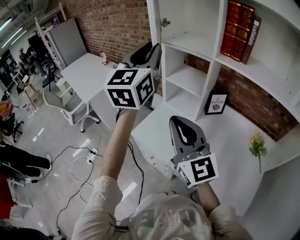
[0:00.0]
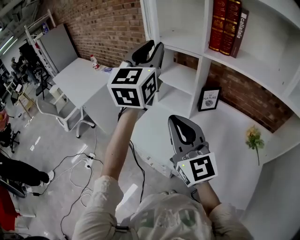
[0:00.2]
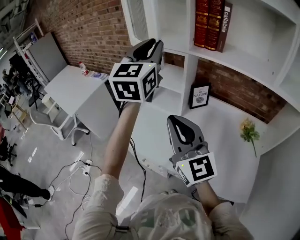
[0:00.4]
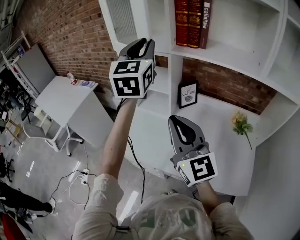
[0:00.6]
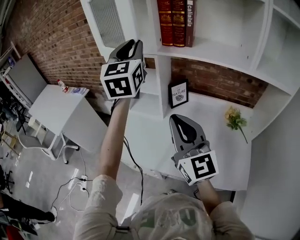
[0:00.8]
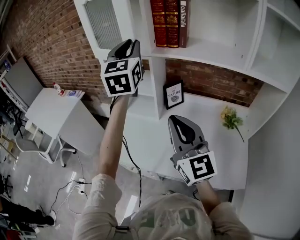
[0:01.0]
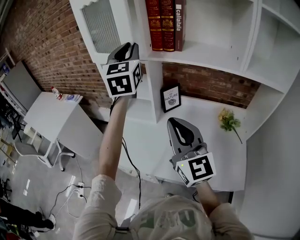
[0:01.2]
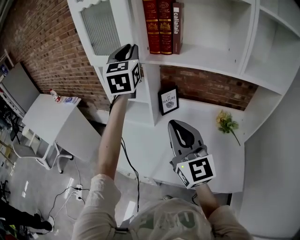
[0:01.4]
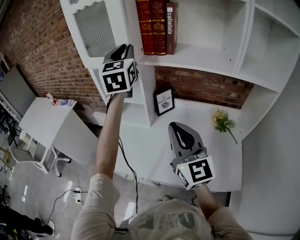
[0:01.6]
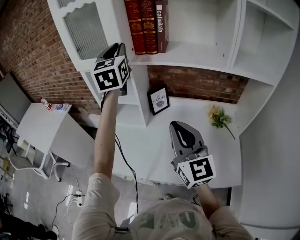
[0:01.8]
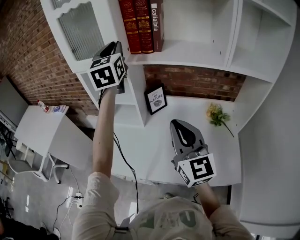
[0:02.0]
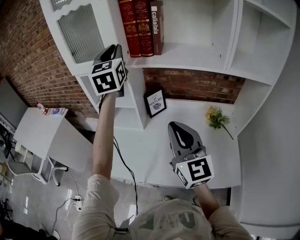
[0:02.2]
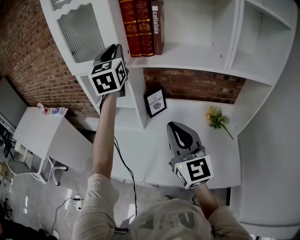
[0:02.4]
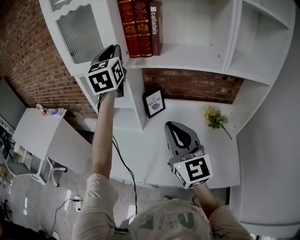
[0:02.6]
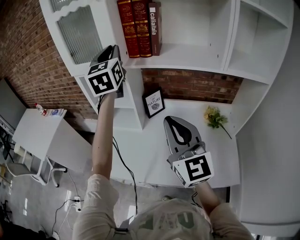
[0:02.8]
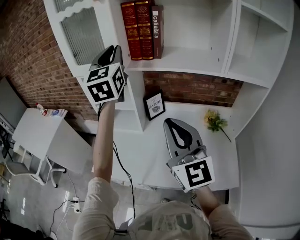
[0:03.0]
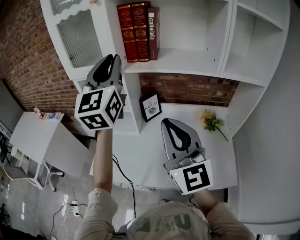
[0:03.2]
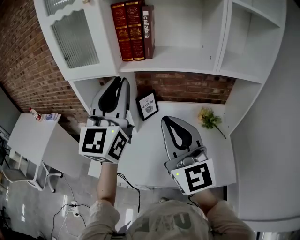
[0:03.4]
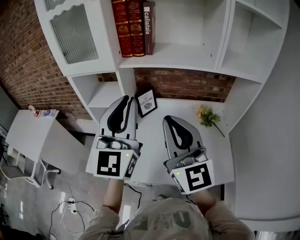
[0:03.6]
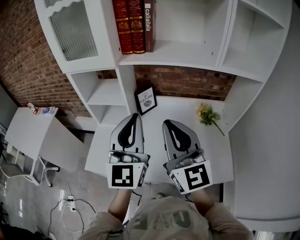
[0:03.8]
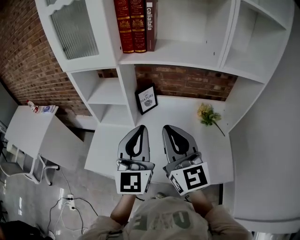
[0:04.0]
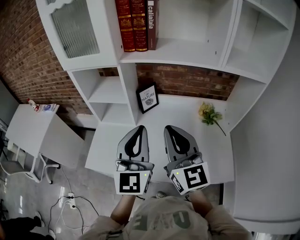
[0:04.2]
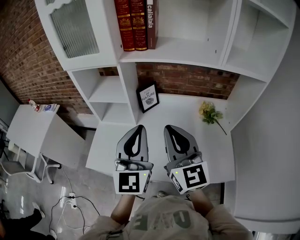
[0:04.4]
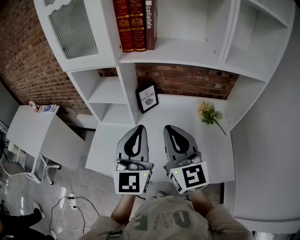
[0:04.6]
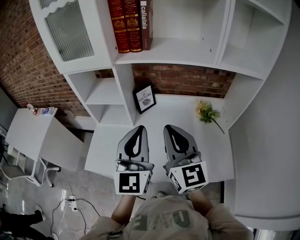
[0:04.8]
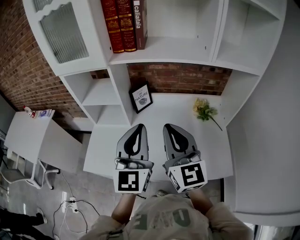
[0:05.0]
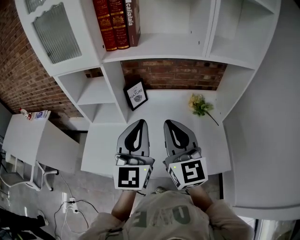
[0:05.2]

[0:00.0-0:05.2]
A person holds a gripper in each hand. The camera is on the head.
0:00.0 to 0:01.8: The left gripper moves to the right and forward, approximately 25 cm; the right gripper goes roughly 20 cm to the right, and rotates some 30 degrees.
0:01.8 to 0:03.4: The right gripper goes about 10 cm upward, while the left gripper goes about 15 cm backward, and turns by roughly 20 degrees.
0:03.4 to 0:05.2: The left gripper moves downward, to the right and backward, some 20 cm. Meanwhile the right gripper moves downward, approximately 10 cm.

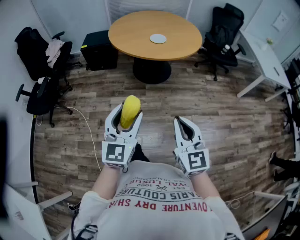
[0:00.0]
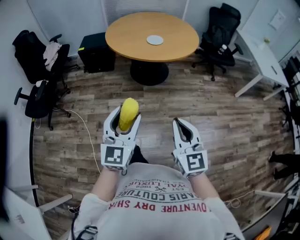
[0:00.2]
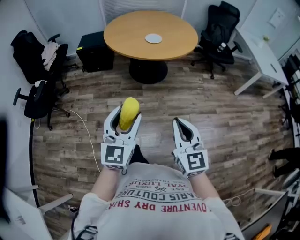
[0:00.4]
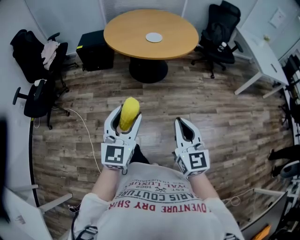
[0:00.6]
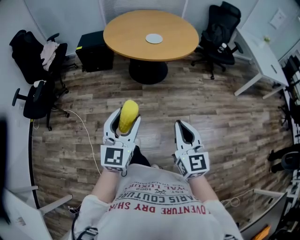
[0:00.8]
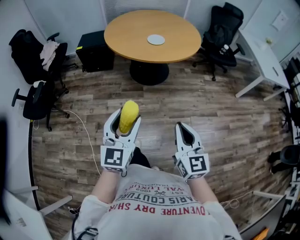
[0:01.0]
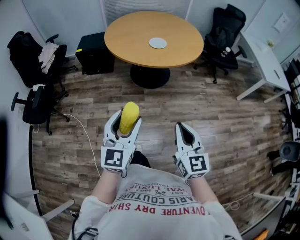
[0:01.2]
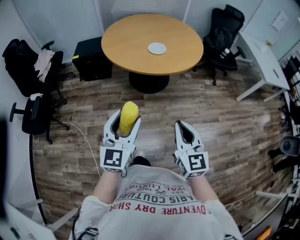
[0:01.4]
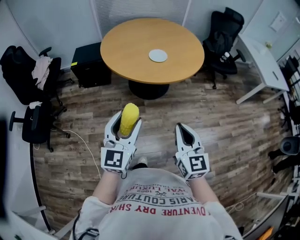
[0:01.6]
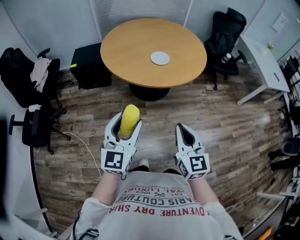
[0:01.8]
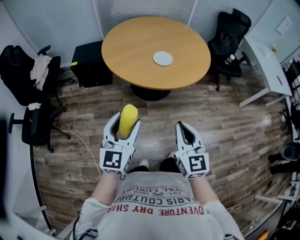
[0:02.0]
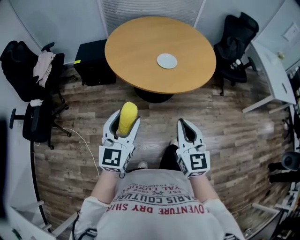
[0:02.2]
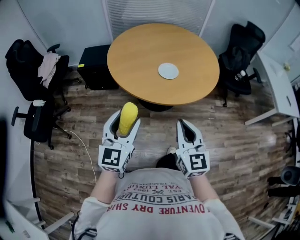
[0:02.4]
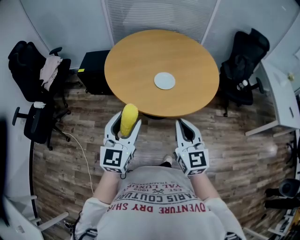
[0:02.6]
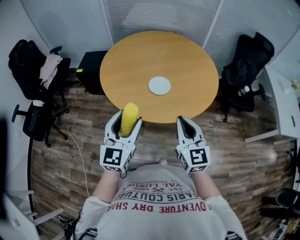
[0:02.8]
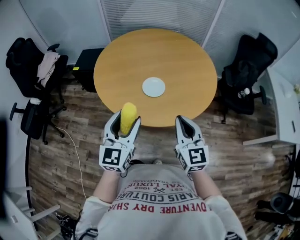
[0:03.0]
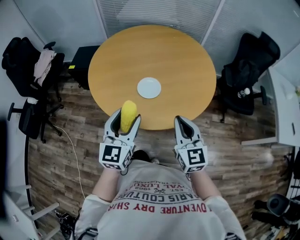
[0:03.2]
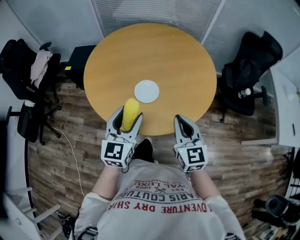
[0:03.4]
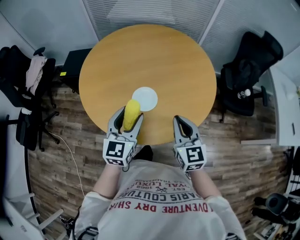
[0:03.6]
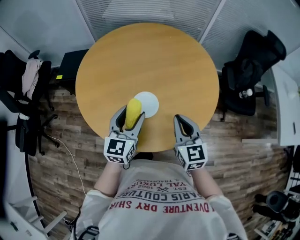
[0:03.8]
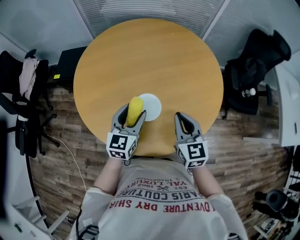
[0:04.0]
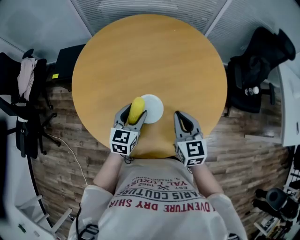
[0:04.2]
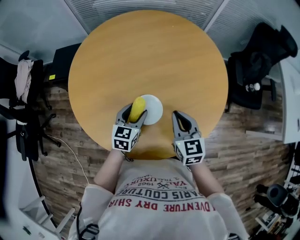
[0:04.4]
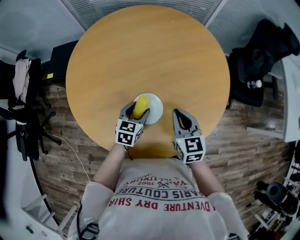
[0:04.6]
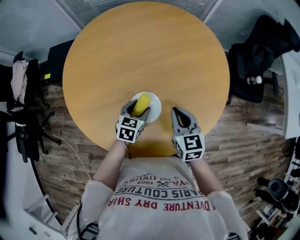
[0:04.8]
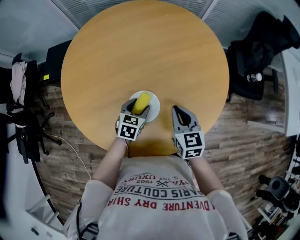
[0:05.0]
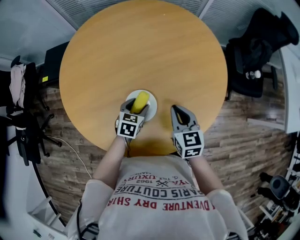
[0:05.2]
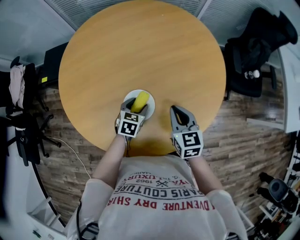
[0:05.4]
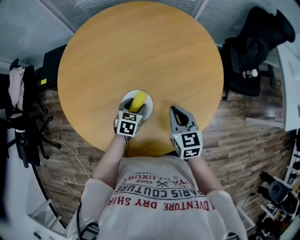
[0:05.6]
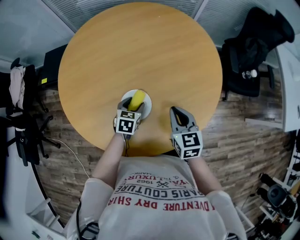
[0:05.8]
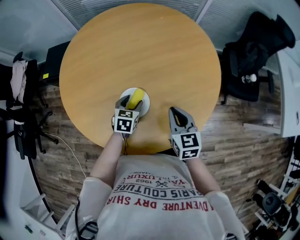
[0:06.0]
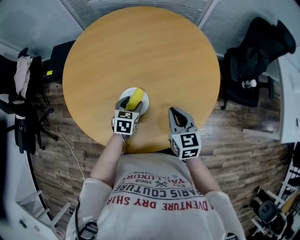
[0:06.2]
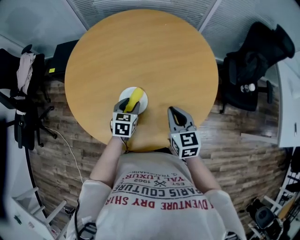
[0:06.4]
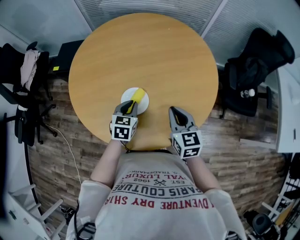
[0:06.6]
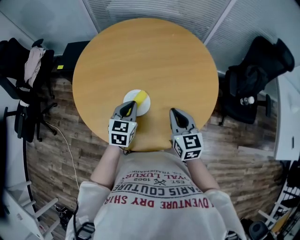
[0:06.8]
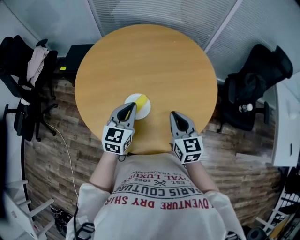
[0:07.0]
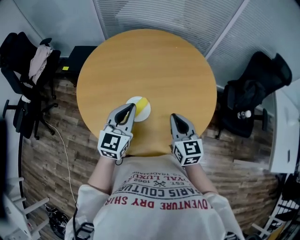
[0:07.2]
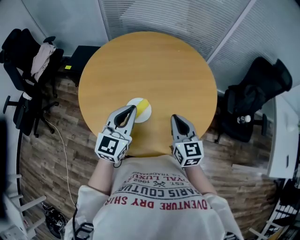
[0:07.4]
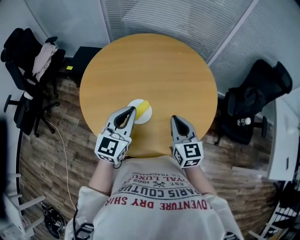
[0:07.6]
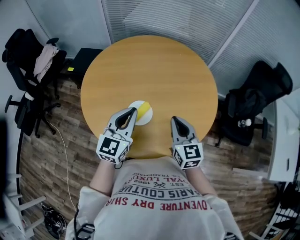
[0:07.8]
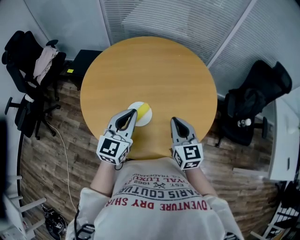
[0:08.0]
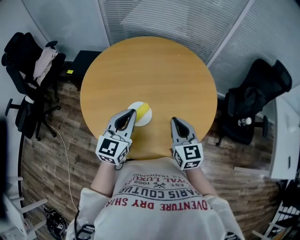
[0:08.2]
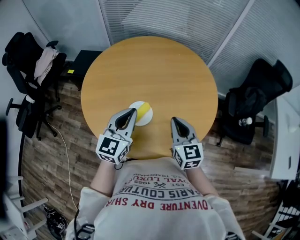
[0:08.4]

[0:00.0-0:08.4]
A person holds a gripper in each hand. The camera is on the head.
0:00.0 to 0:01.4: The grippers both shift forward by roughly 15 cm.
0:01.4 to 0:02.8: The two grippers go roughly 35 cm forward.
0:02.8 to 0:04.2: Both grippers travel together forward and downward, about 35 cm. The left gripper changes its angle by about 30 degrees.
0:04.2 to 0:05.6: The left gripper heads downward, covering some 15 cm, and swivels some 30 degrees. Meanwhile the right gripper heads downward, covering approximately 5 cm.
0:05.6 to 0:07.0: The right gripper goes about 10 cm upward, while the left gripper goes some 25 cm upward, tilts its fingers roughly 30 degrees upward, and closes up.
0:07.0 to 0:08.4: The left gripper goes approximately 5 cm upward.

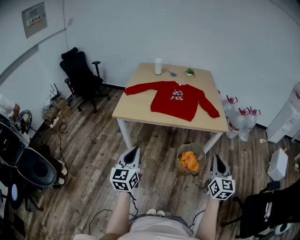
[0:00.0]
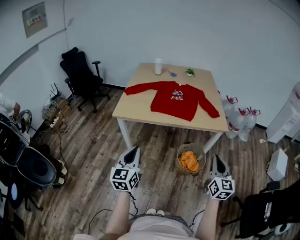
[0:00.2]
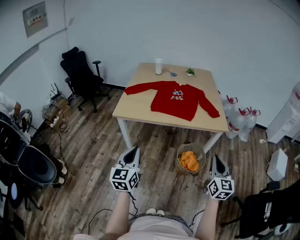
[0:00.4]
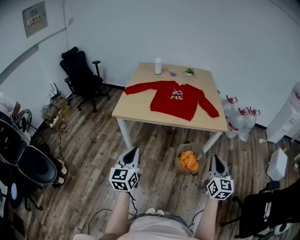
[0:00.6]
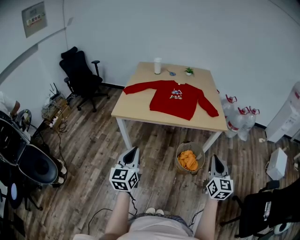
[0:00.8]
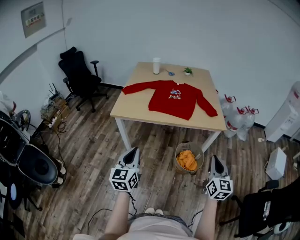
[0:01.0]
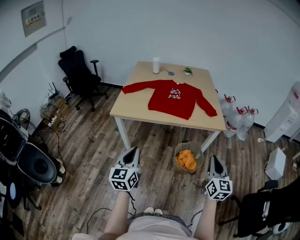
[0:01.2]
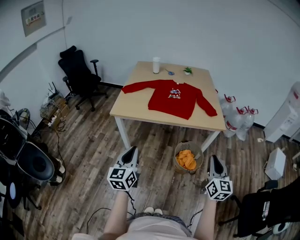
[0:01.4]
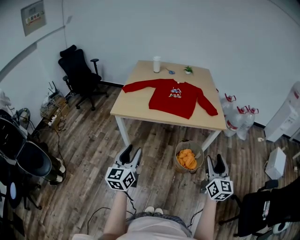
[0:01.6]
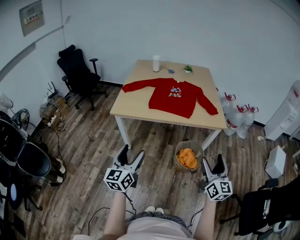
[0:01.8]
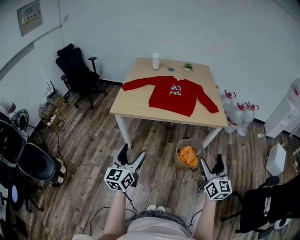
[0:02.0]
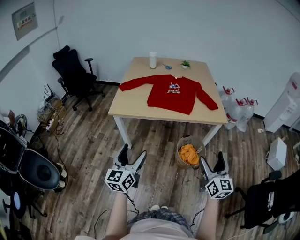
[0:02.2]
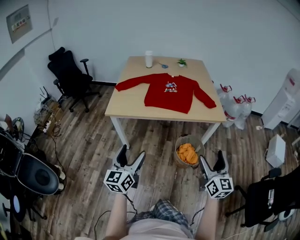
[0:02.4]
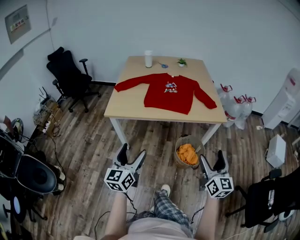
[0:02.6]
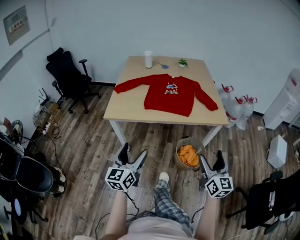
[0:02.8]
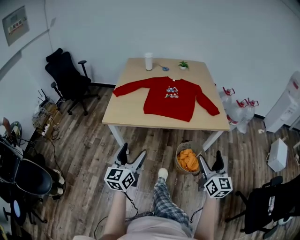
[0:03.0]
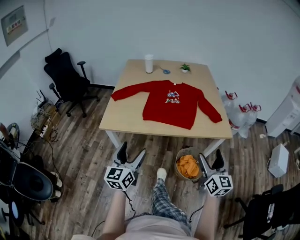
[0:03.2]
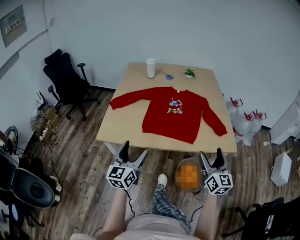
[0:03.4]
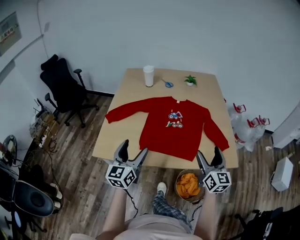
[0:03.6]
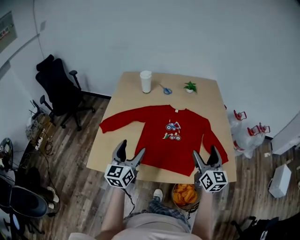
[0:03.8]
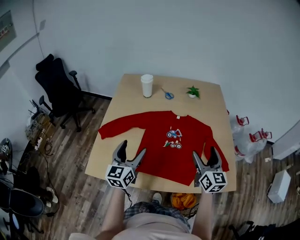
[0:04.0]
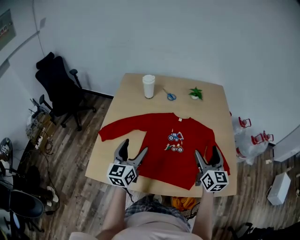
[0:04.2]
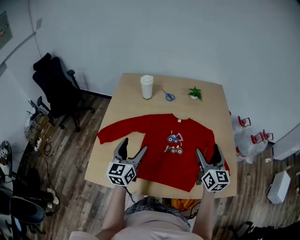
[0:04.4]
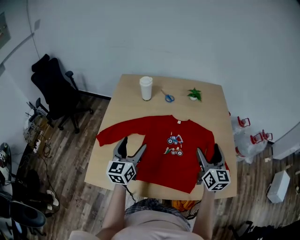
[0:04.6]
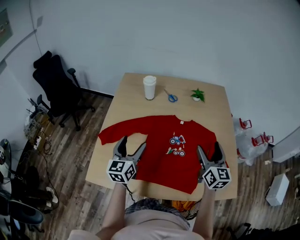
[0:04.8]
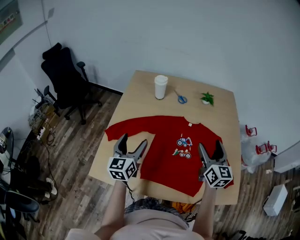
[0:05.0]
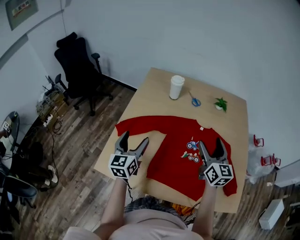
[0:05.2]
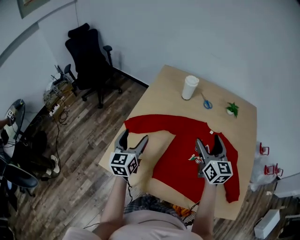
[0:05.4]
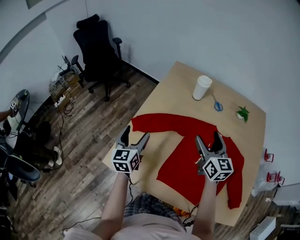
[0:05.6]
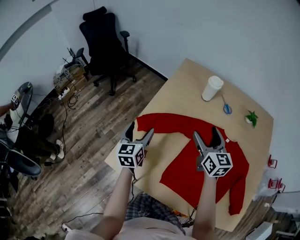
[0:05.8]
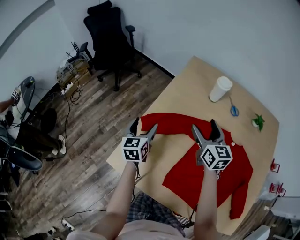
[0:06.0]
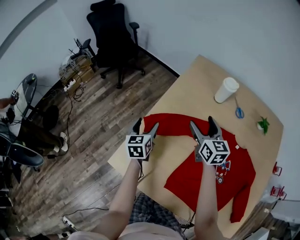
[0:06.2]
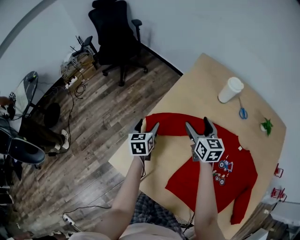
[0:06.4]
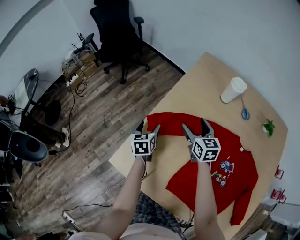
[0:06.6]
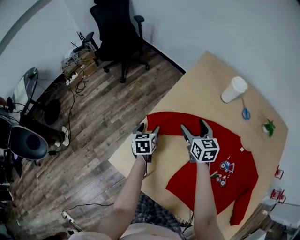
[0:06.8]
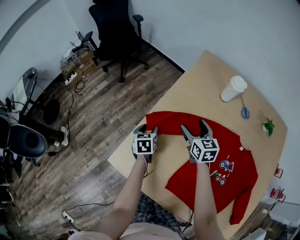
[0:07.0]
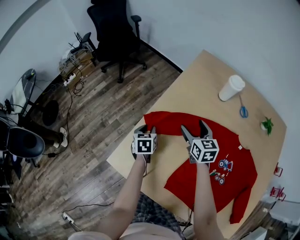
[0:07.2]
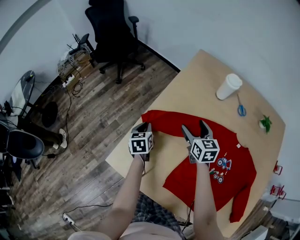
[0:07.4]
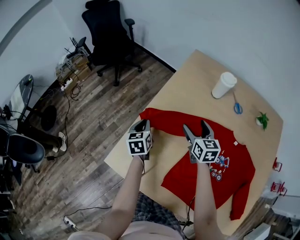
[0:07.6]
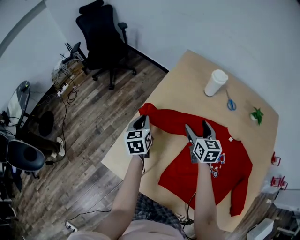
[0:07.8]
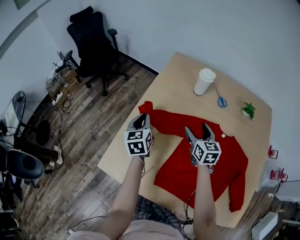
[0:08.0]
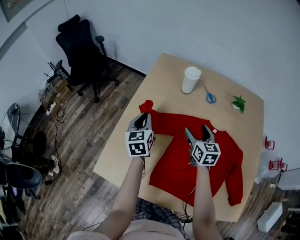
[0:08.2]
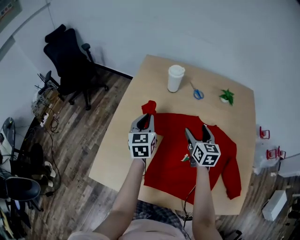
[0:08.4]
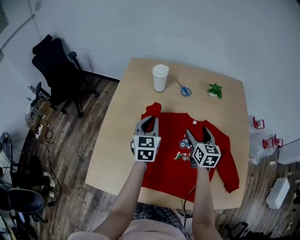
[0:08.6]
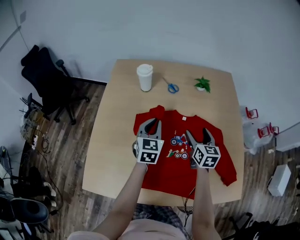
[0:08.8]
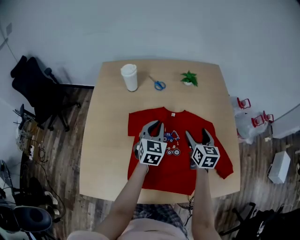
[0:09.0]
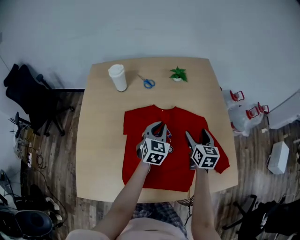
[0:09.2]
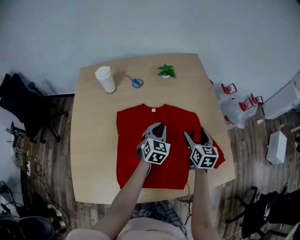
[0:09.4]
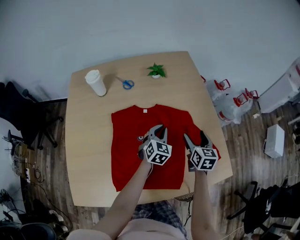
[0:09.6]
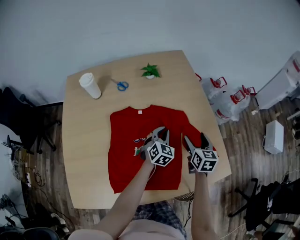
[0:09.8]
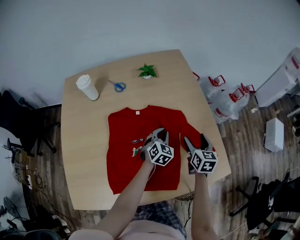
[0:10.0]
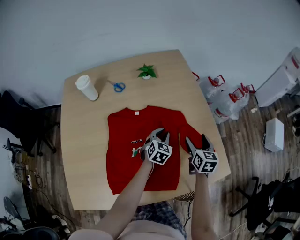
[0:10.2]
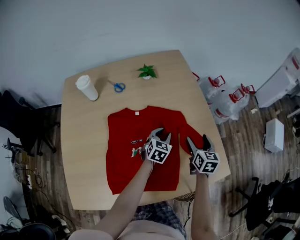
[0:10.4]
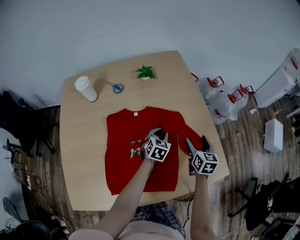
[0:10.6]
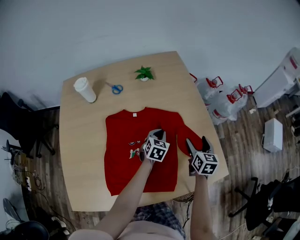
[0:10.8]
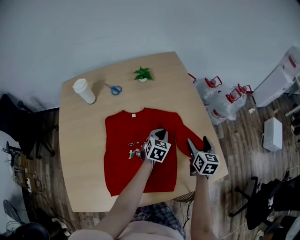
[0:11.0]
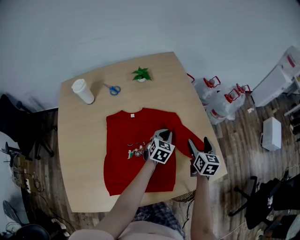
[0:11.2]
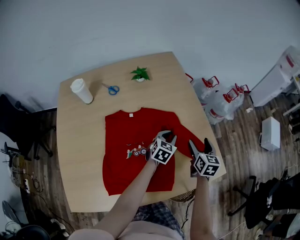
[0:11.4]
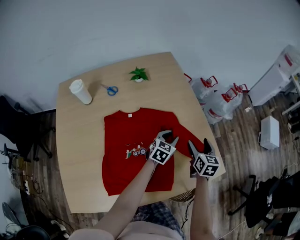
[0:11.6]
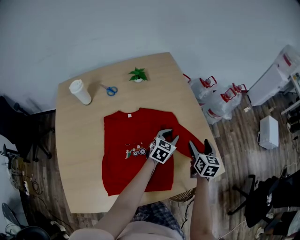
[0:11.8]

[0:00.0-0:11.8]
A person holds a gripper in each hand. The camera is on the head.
0:00.0 to 0:01.4: The grippers move only a little.
0:01.4 to 0:03.0: Both grippers travel together forward, some 10 cm. The right gripper opens up. The left gripper opens.
0:03.0 to 0:04.4: Both grippers are carried forward, about 50 cm.
0:04.4 to 0:06.0: The left gripper moves roughly 30 cm, and rotates about 30 degrees. The right gripper changes place by approximately 40 cm, and changes its angle by some 40 degrees.
0:06.0 to 0:07.4: Both grippers travel together downward, some 10 cm. The left gripper changes its angle by some 20 degrees, and closes.
0:07.4 to 0:08.8: The left gripper moves some 40 cm, and changes its angle by about 50 degrees, while the right gripper shifts by about 35 cm, and swivels roughly 40 degrees.
0:08.8 to 0:10.4: The left gripper ends up about 35 cm from where it was, and swivels about 40 degrees. Meanwhile the right gripper moves about 25 cm, and changes its angle by some 20 degrees.
0:10.4 to 0:11.8: The left gripper shifts about 10 cm to the right; the right gripper goes some 5 cm to the right.
